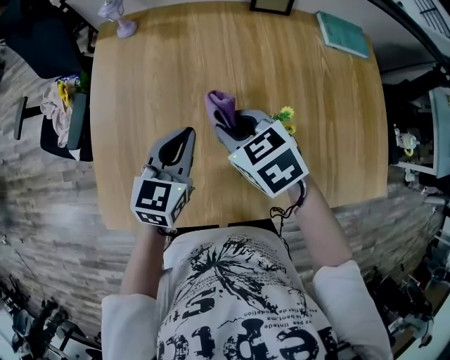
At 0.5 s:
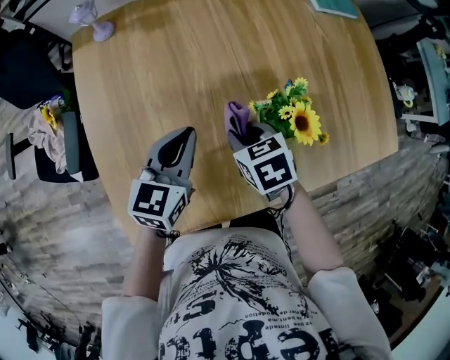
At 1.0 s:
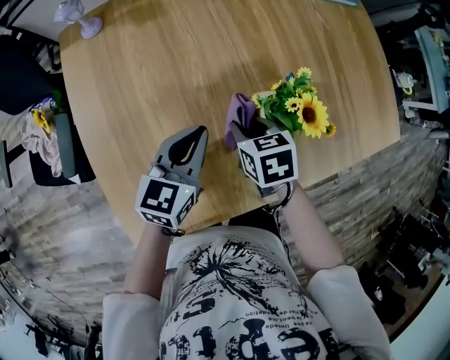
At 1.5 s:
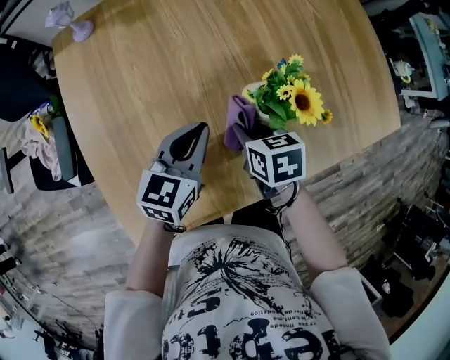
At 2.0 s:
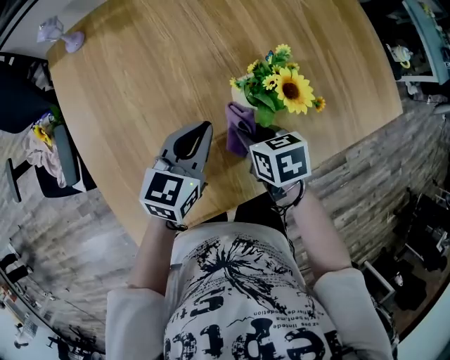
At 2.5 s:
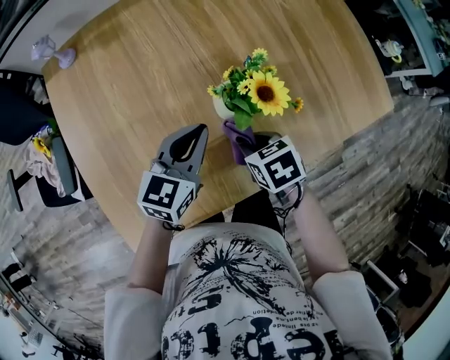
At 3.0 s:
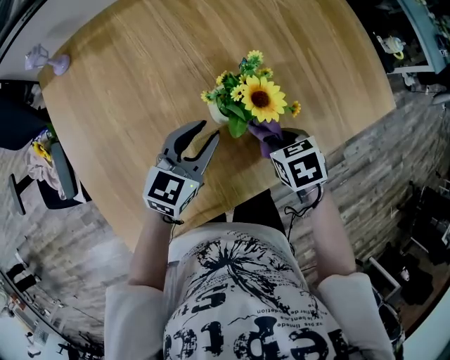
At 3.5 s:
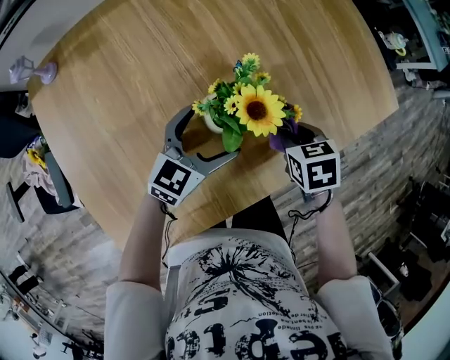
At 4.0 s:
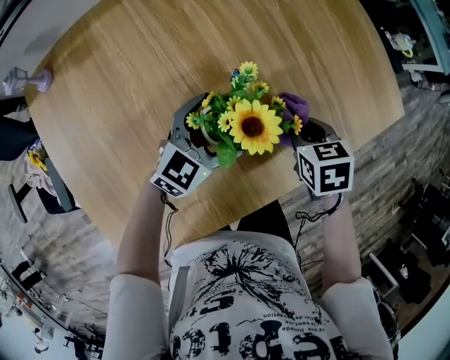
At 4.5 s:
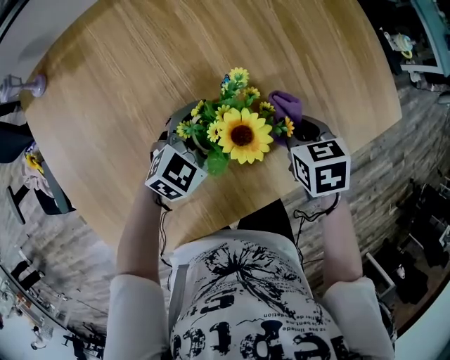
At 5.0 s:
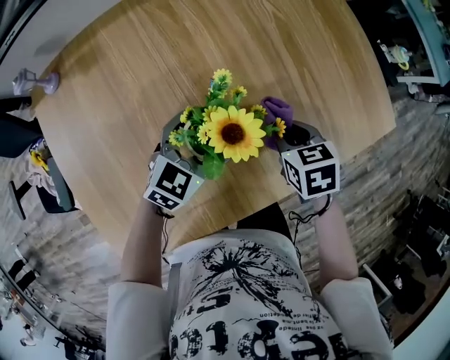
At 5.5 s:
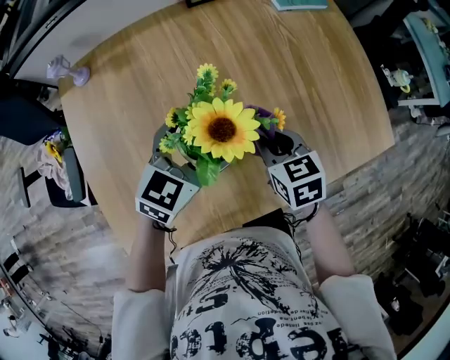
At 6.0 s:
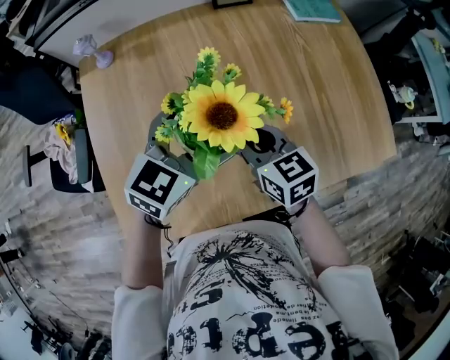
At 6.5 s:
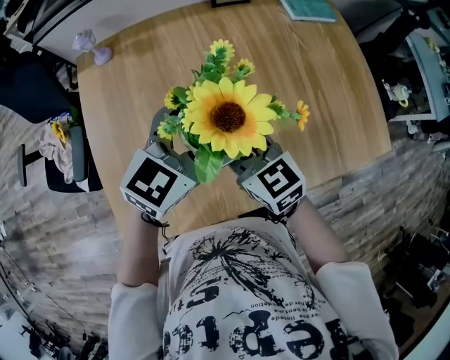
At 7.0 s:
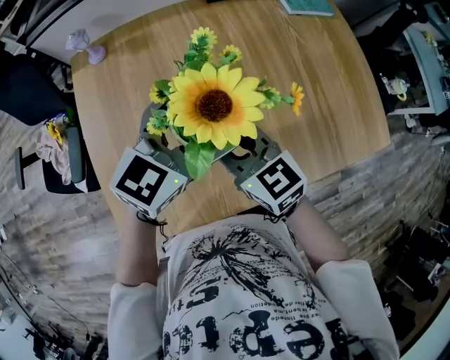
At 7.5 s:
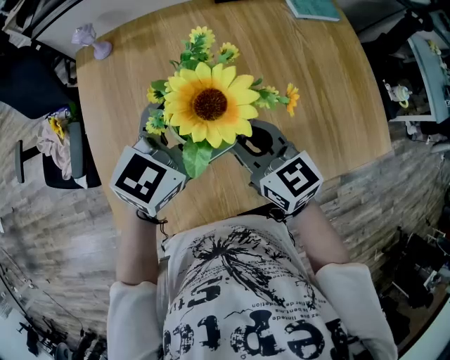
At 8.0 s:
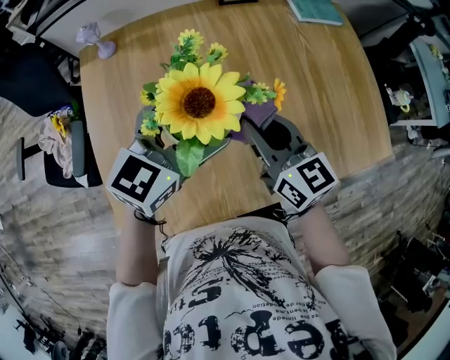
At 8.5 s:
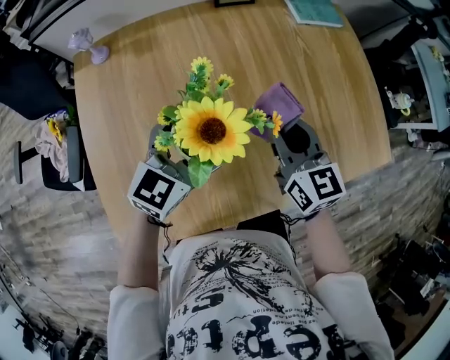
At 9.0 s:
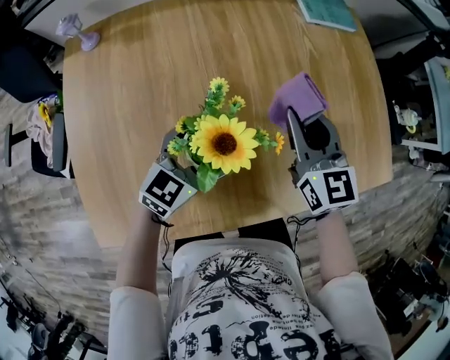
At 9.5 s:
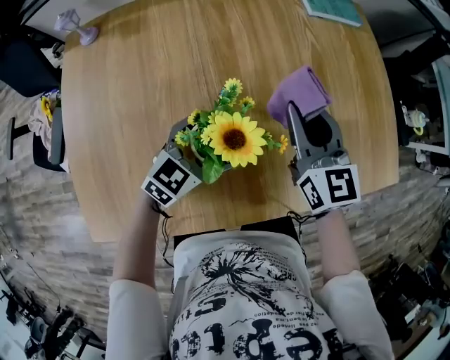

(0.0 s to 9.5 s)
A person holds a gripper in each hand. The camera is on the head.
0.0 s - 2.0 s: The right gripper travels downward by approximately 15 cm, and rolls clockwise, seen from behind, by roughly 40 degrees, while the left gripper heads downward, covering roughly 5 cm, and rotates about 30 degrees.
2.0 s - 4.0 s: The left gripper shifts by approximately 15 cm, turns by about 30 degrees, and opens up, while the right gripper moves approximately 20 cm.
4.0 s - 5.5 s: The right gripper heads to the left and upward, covering about 15 cm, and changes its angle by some 20 degrees. Meanwhile the left gripper moves upward and to the left, some 15 cm.
5.5 s - 7.5 s: The left gripper goes approximately 10 cm upward and to the left, while the right gripper is displaced to the left and upward by approximately 15 cm, and rotates some 30 degrees.
7.5 s - 9.5 s: The right gripper shifts about 20 cm to the right and forward, and changes its angle by approximately 20 degrees, while the left gripper goes roughly 25 cm downward and to the right.

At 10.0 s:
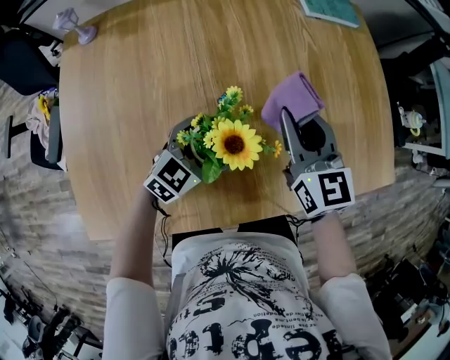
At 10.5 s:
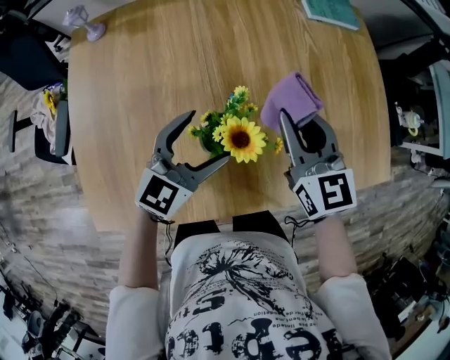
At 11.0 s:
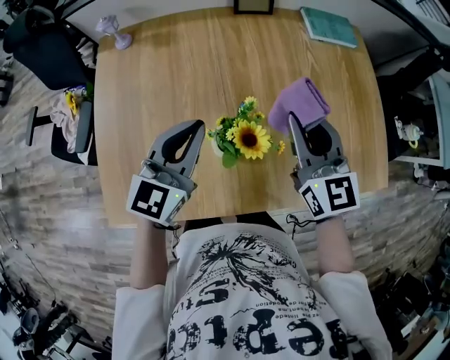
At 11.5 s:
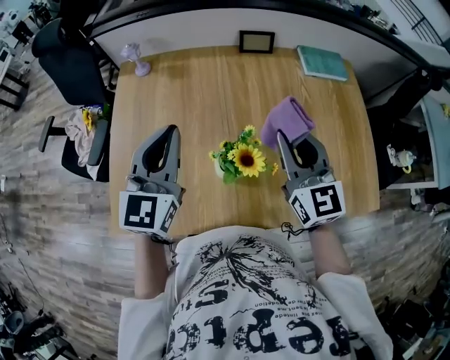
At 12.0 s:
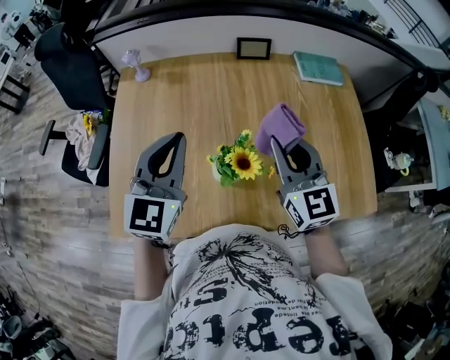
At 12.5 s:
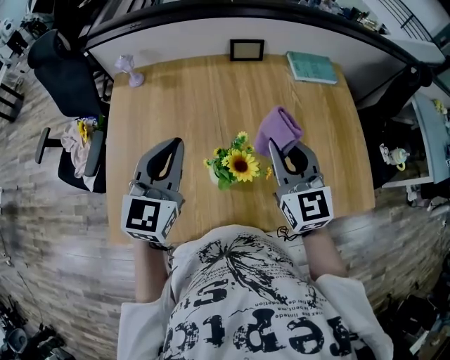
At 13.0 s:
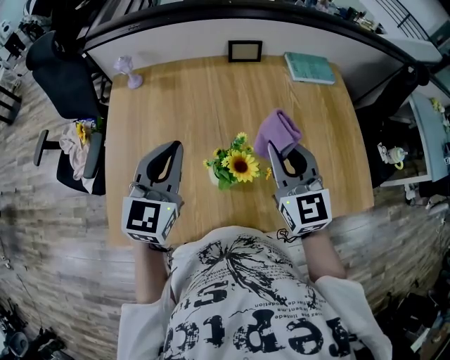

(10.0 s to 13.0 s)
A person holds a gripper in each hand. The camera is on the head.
10.0 s - 11.5 s: The left gripper travels upward by some 30 cm, swivels about 50 degrees, and closes up. Meanwhile the right gripper moves upward, roughly 15 cm.
11.5 s - 13.0 s: The grippers stay close to where they were, moving slightly.

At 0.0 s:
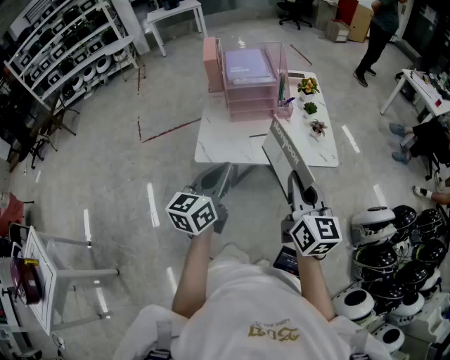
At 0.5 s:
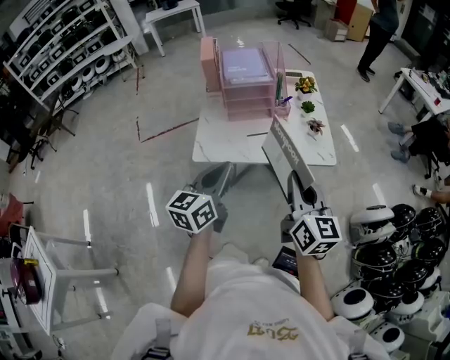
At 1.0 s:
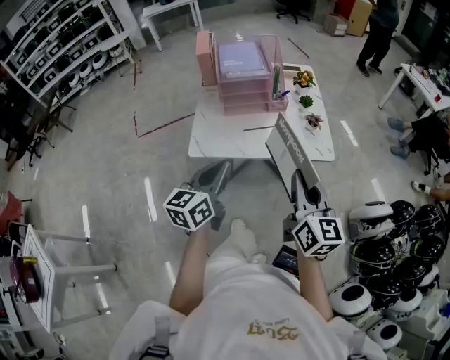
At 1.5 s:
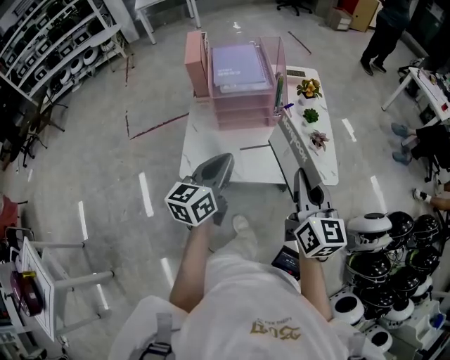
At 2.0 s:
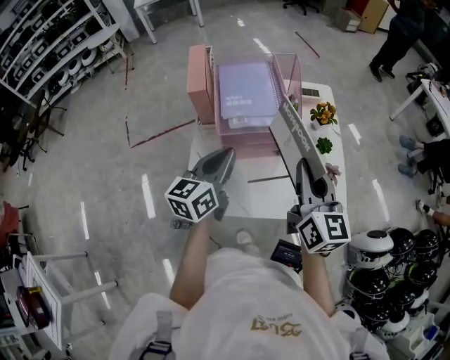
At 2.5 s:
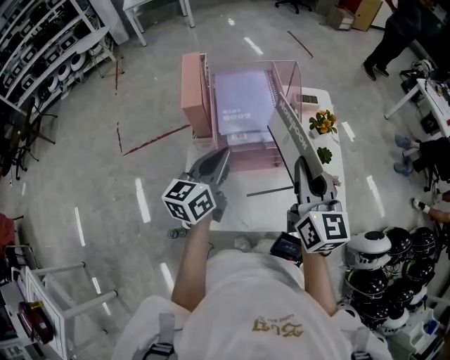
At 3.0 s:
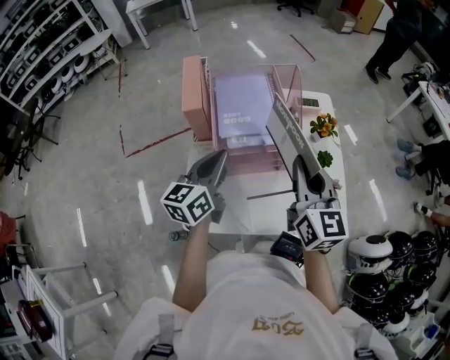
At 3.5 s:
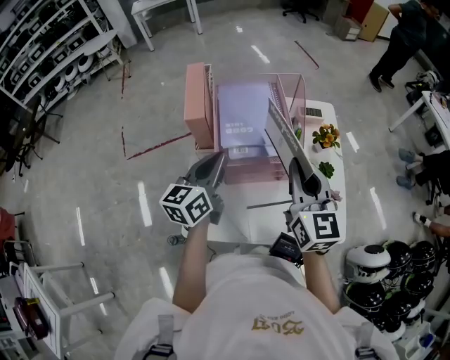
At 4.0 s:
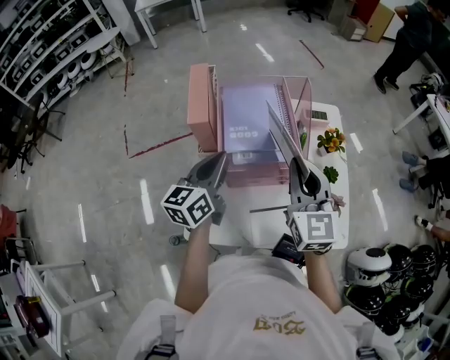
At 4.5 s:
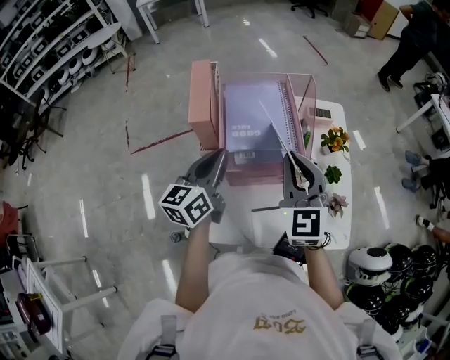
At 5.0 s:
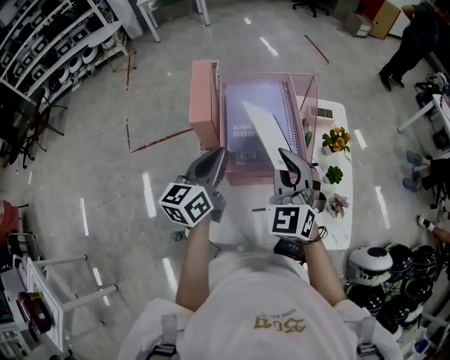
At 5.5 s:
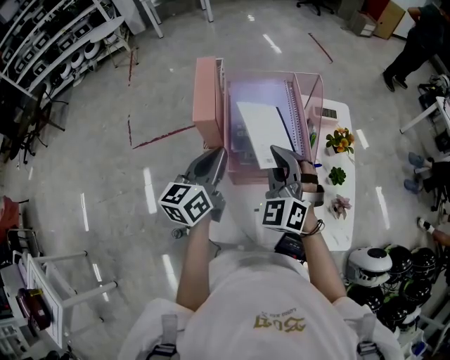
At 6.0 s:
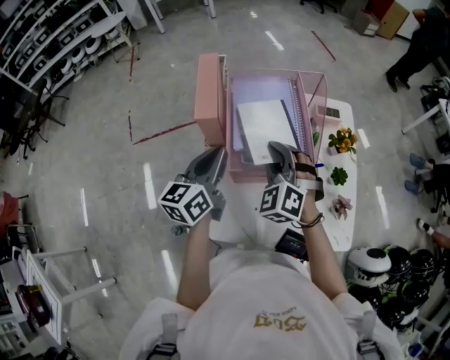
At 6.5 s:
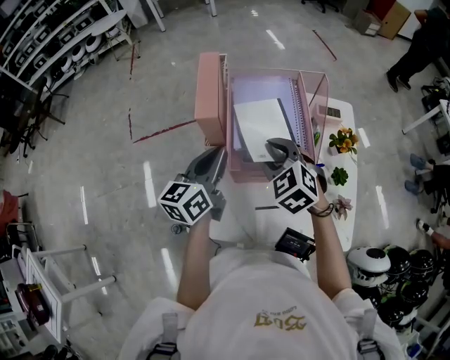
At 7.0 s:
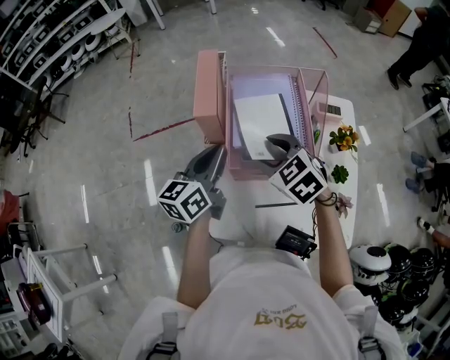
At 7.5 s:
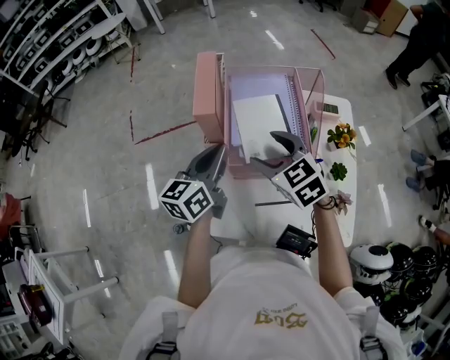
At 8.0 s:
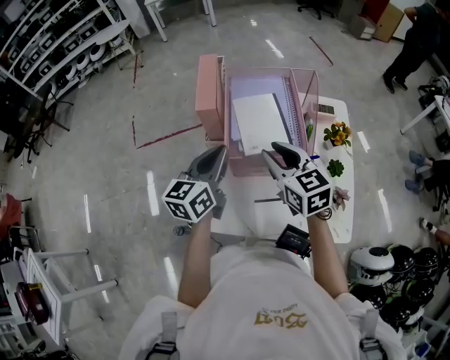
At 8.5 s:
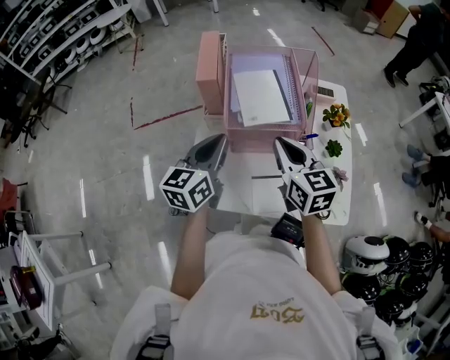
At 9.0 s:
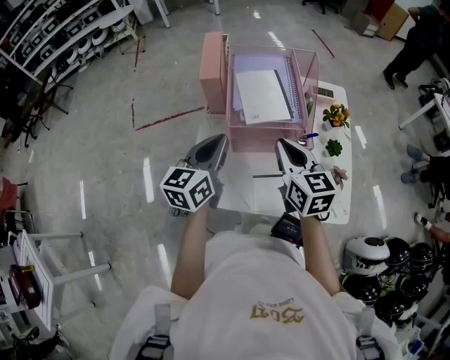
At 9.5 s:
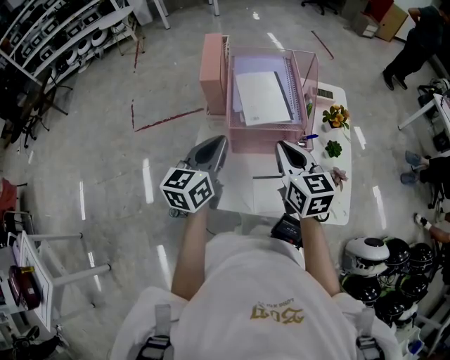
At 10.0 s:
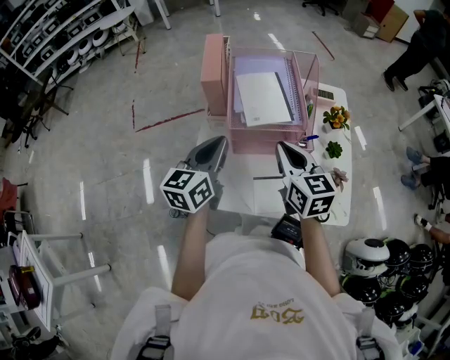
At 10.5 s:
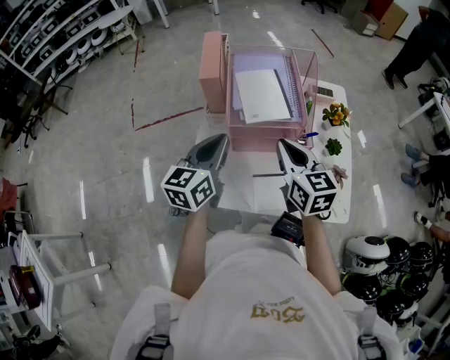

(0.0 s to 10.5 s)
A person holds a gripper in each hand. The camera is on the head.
0.0 s - 2.0 s: Both grippers move forward, approximately 30 cm.
2.0 s - 4.0 s: The two grippers go some 10 cm forward and to the left. The right gripper changes its angle by approximately 20 degrees.
4.0 s - 6.5 s: The right gripper moves to the left, downward and forward, roughly 15 cm, tips its fingers downward by roughly 40 degrees, and opens up.
6.5 s - 8.5 s: The two grippers go approximately 10 cm backward. The right gripper changes its angle by approximately 50 degrees, and closes up.
8.5 s - 10.5 s: The grippers stay close to where they were, moving slightly.

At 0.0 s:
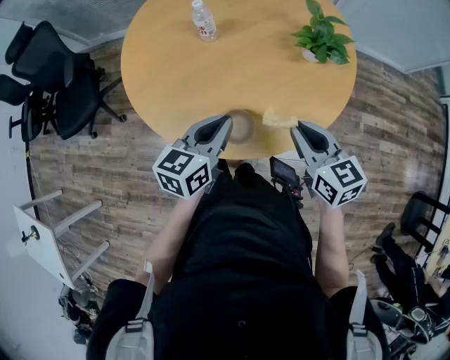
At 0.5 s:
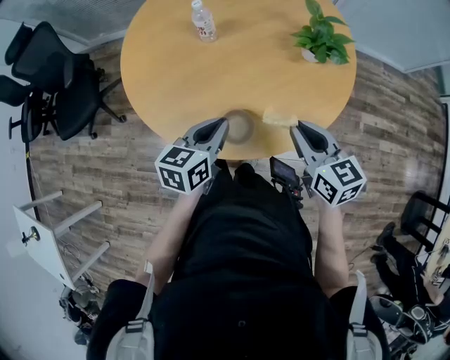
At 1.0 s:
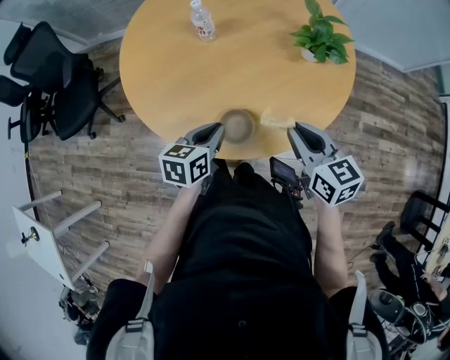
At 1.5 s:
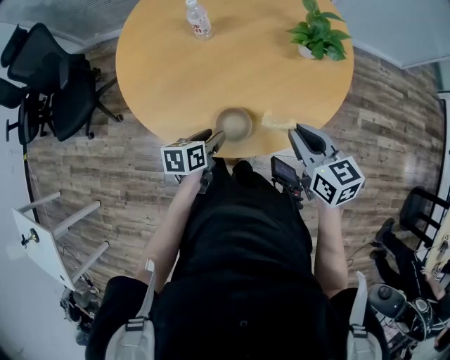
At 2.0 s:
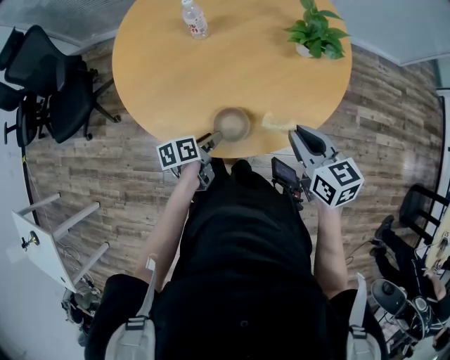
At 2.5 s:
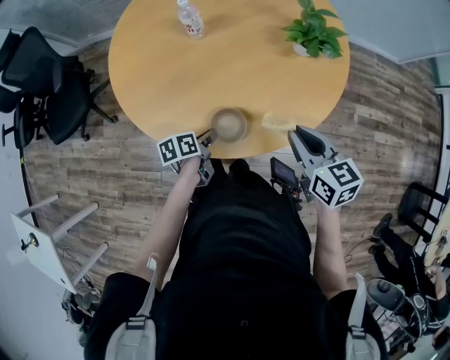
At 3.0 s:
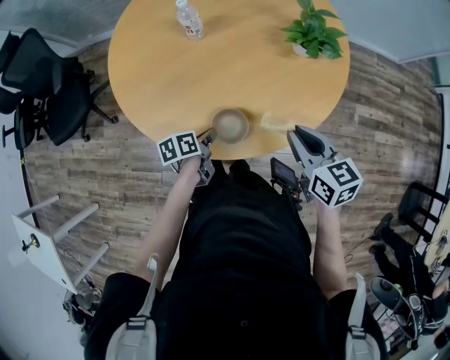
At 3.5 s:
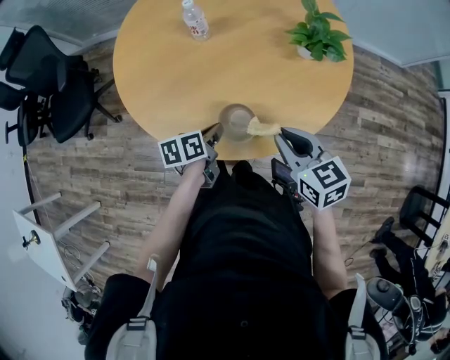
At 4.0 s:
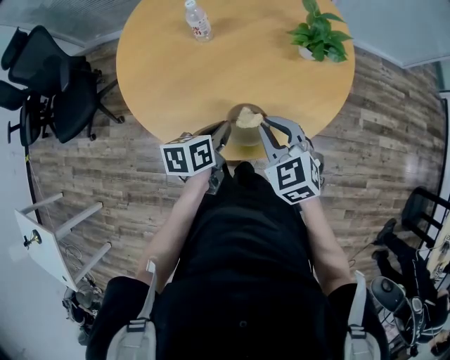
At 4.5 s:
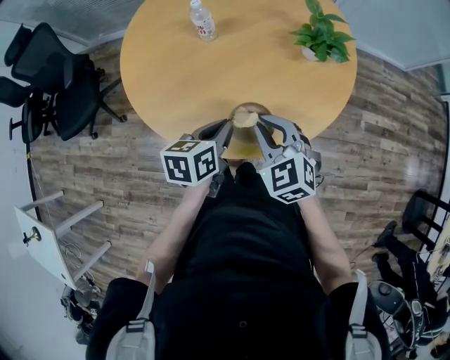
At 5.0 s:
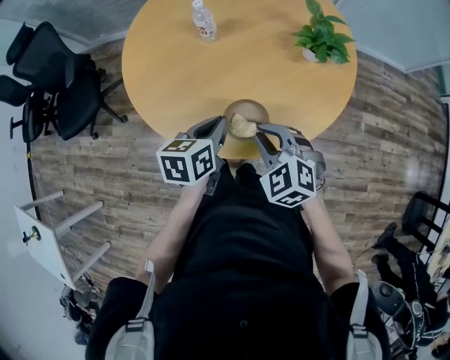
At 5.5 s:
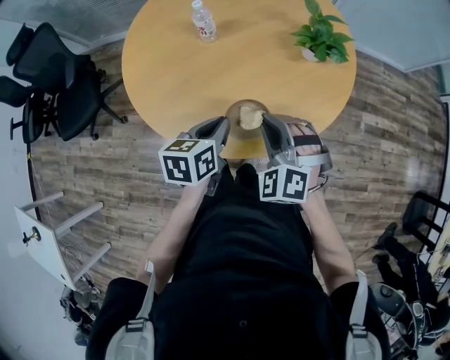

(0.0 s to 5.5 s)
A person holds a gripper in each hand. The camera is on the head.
0.0 s - 2.0 s: The left gripper moves downward, some 20 cm, rotates around the line of its fingers by approximately 40 degrees, counterclockwise from behind, and opens up.
2.0 s - 3.5 s: The left gripper changes place by about 5 cm, and closes.
3.5 s - 5.5 s: The right gripper is displaced to the left by about 5 cm, and rotates around the line of its fingers by approximately 60 degrees, counterclockwise from behind; the left gripper is displaced upward by some 10 cm, and changes its angle by some 20 degrees.
